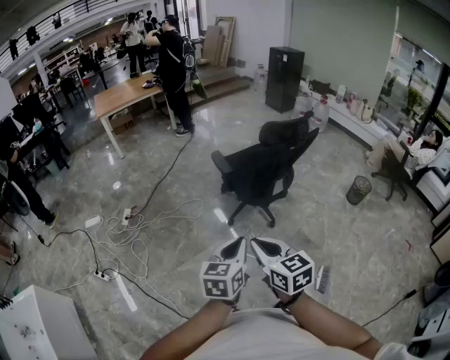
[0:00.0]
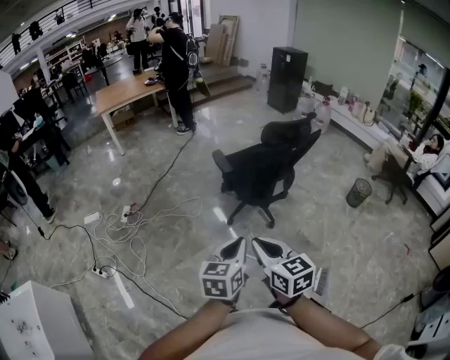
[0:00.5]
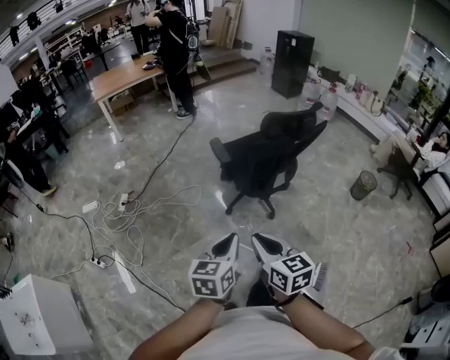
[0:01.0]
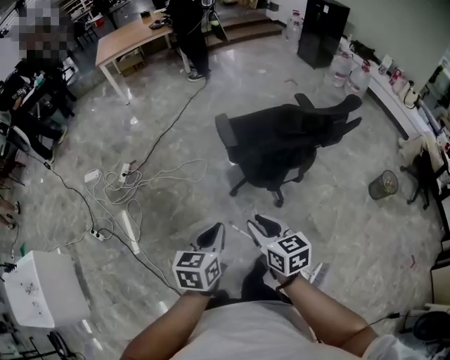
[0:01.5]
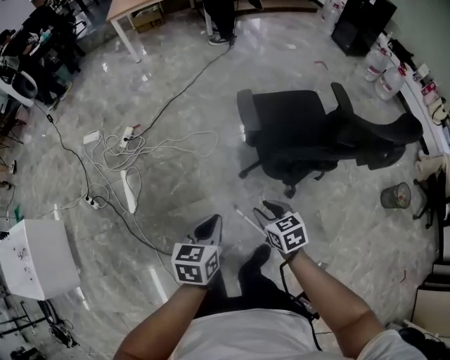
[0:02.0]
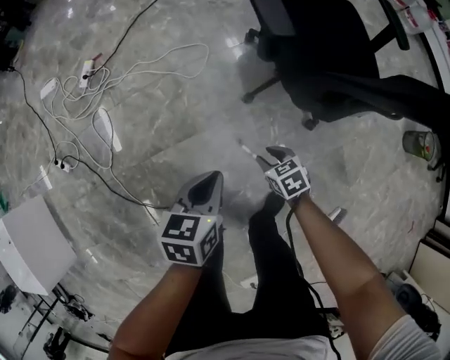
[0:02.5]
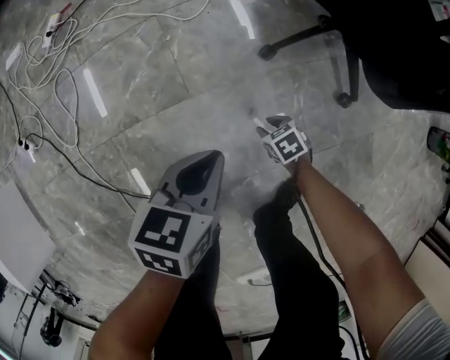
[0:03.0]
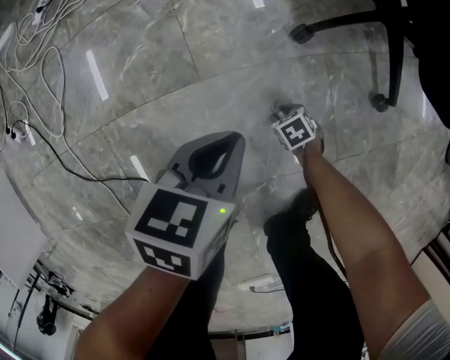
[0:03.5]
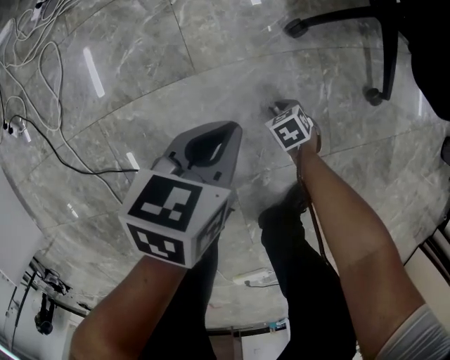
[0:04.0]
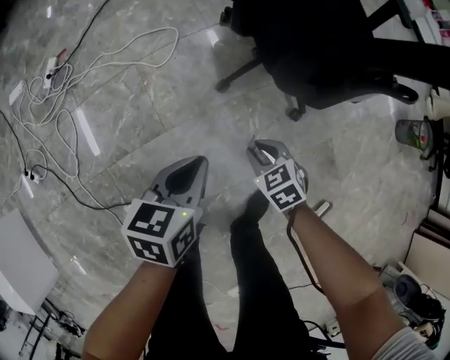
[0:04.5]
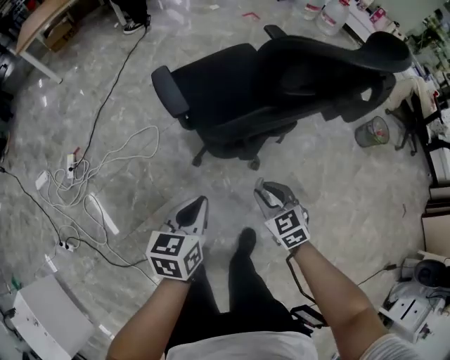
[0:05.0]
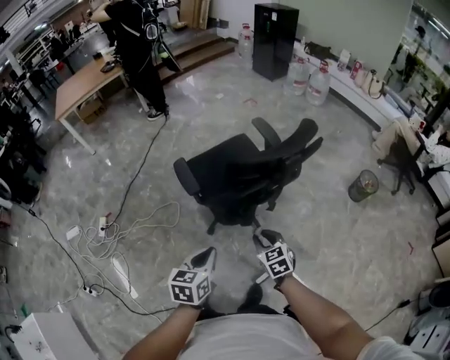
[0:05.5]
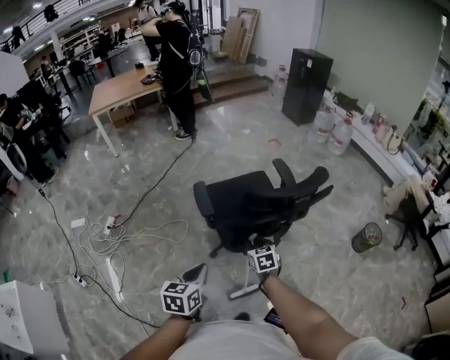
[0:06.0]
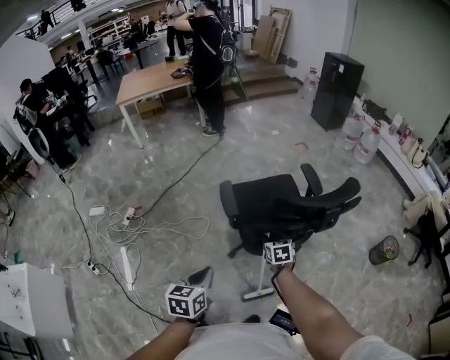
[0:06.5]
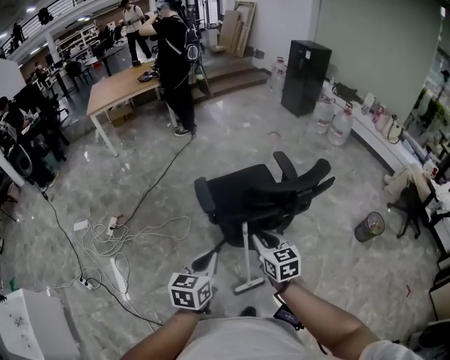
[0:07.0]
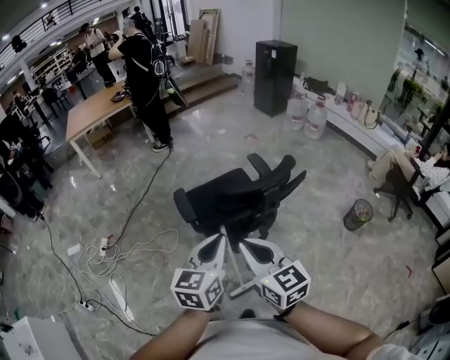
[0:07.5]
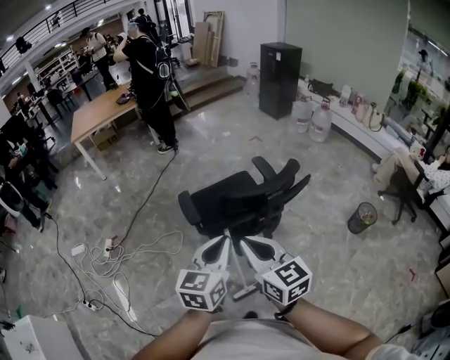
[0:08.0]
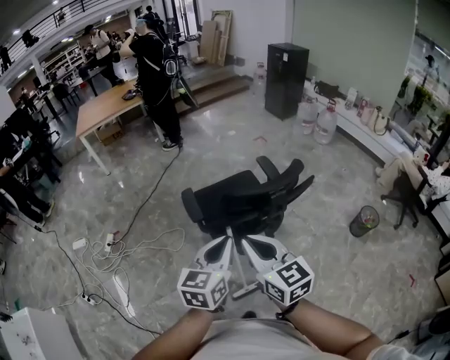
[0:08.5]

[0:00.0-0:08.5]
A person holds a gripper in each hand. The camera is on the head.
0.0 to 2.0 s: The two grippers go some 40 cm forward and downward. The right gripper turns by approximately 30 degrees, and opens. The left gripper swivels about 30 degrees.
2.0 to 4.0 s: The grippers both shift downward by approximately 80 cm. The right gripper tips its fingers downward by roughly 30 degrees.
4.0 to 6.5 s: The two grippers go some 80 cm upward. The left gripper rotates about 20 degrees, while the right gripper tips its fingers upward by about 40 degrees.
6.5 to 8.5 s: The right gripper heads upward and backward, covering about 35 cm, tips its fingers upward by approximately 30 degrees, and closes up; the left gripper shifts roughly 25 cm to the right and upward, and rotates about 20 degrees.

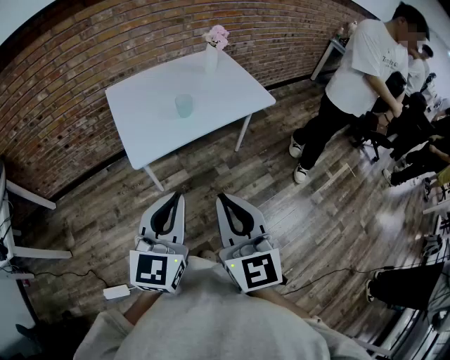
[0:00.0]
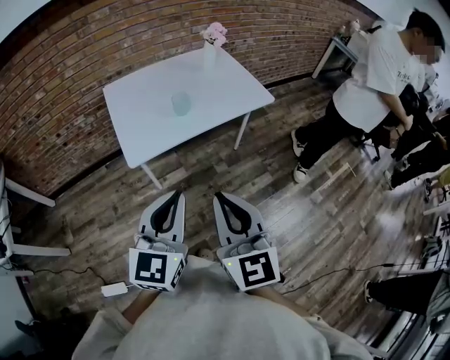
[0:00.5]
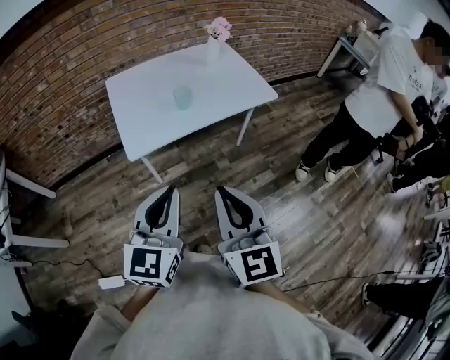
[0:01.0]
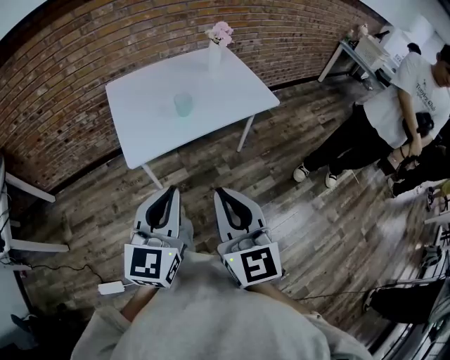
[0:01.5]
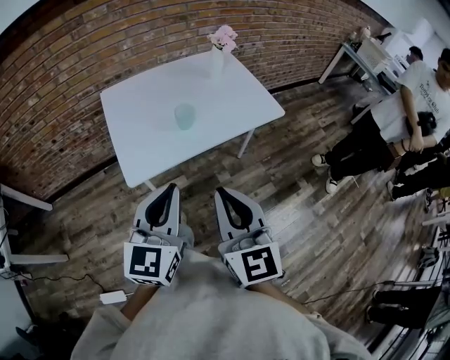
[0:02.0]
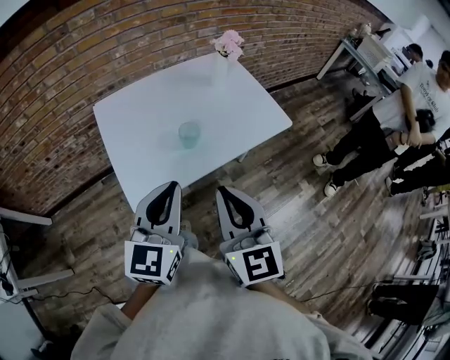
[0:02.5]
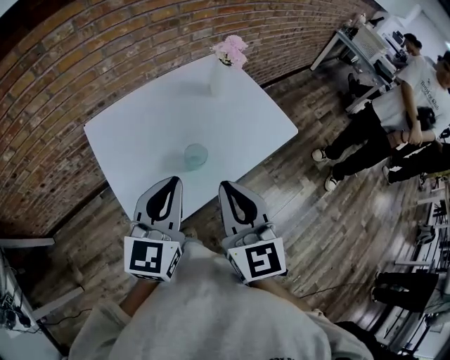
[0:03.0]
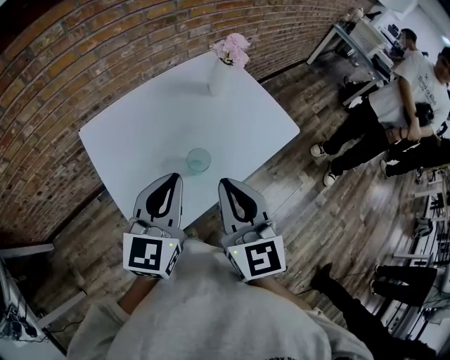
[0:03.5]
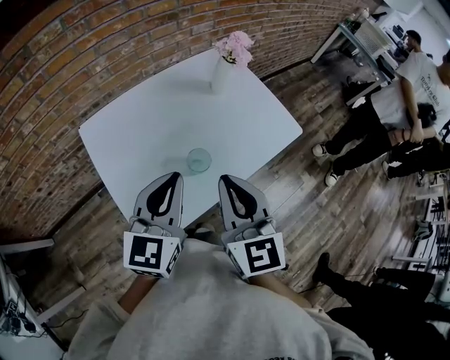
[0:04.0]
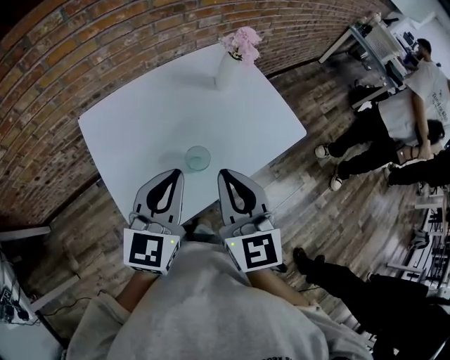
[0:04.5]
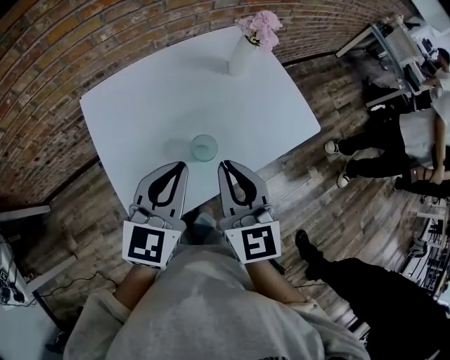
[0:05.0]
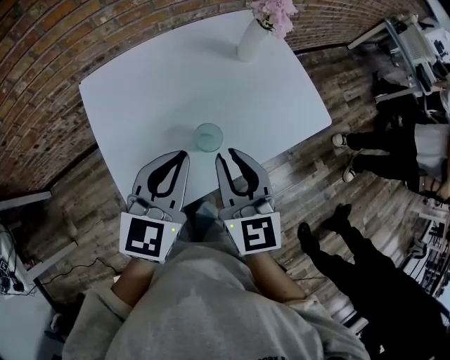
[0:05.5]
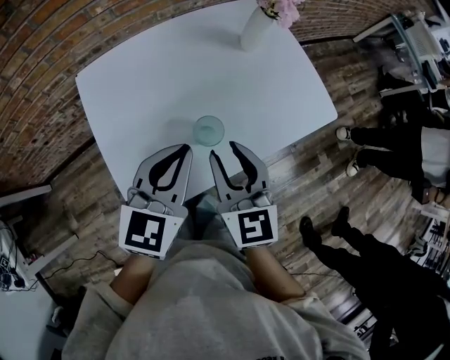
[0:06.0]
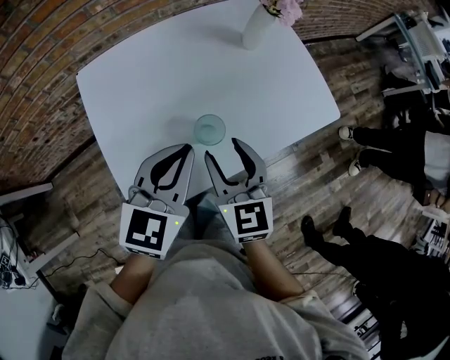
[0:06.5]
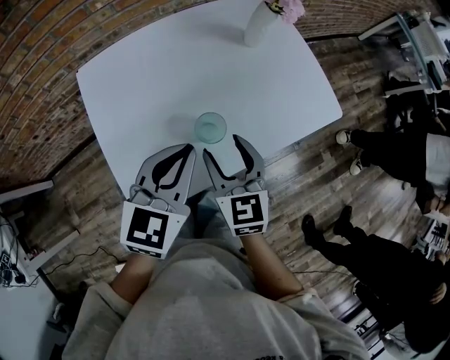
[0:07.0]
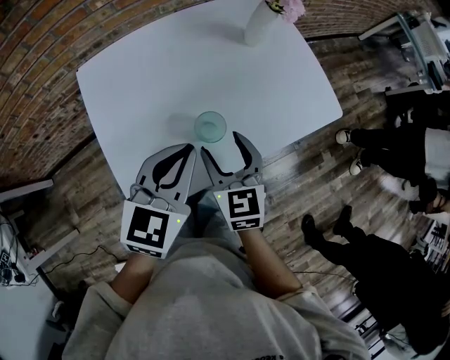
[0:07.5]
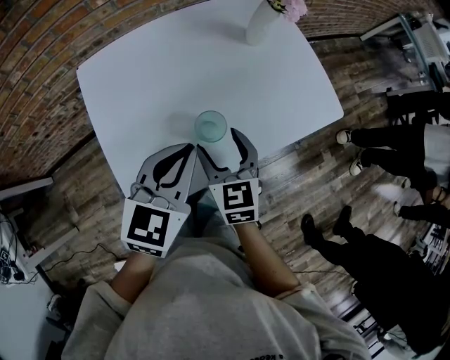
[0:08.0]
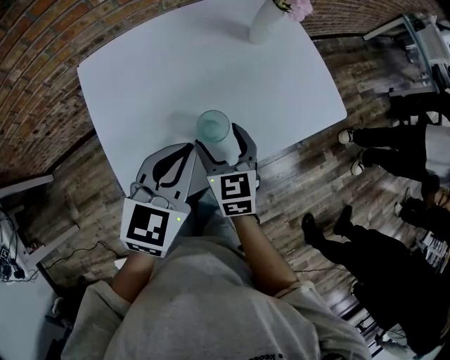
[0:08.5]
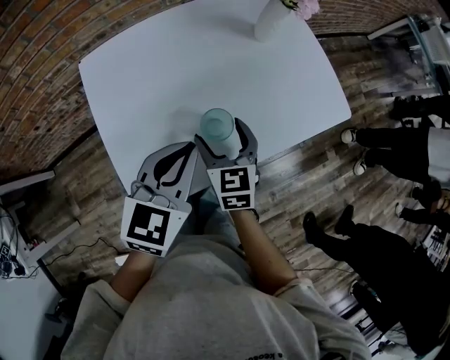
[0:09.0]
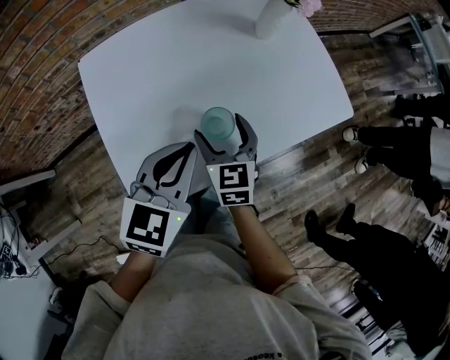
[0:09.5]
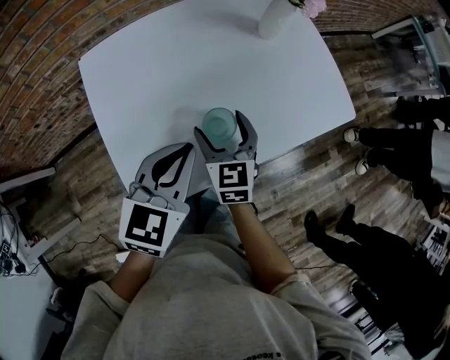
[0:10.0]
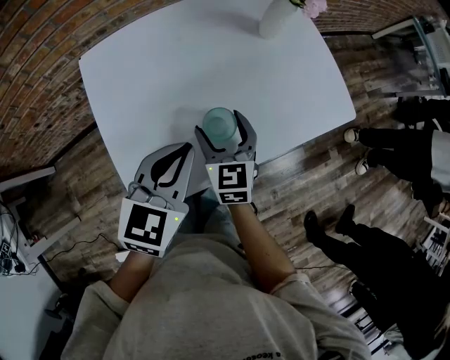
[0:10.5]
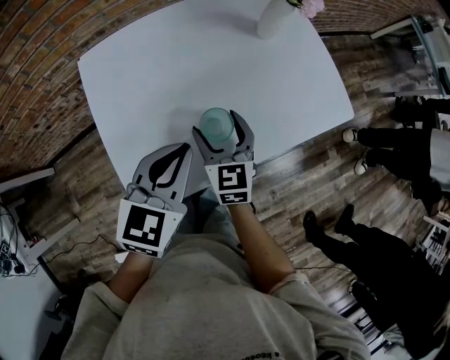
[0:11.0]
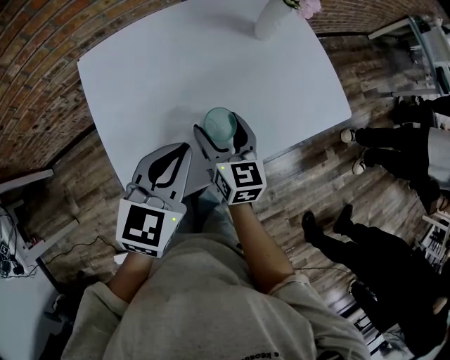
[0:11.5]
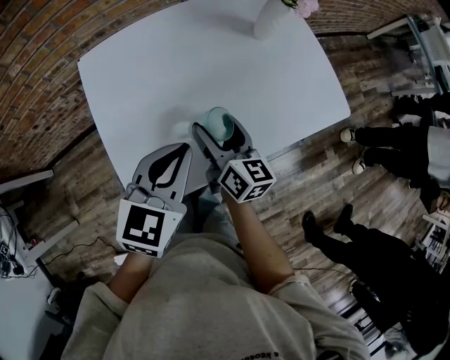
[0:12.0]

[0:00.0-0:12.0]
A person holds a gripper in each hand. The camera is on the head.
0.0 to 2.0 s: Both grippers move forward, roughly 10 cm.
2.0 to 4.0 s: Both grippers move forward, about 30 cm.
4.0 to 6.0 s: The right gripper moves downward and forward, roughly 15 cm, while the left gripper is displaced downward by about 10 cm.
6.0 to 8.0 s: The right gripper travels downward by about 10 cm, and opens up.
8.0 to 10.0 s: The right gripper changes place by roughly 5 cm.
10.0 to 12.0 s: The right gripper changes its angle by roughly 40 degrees.

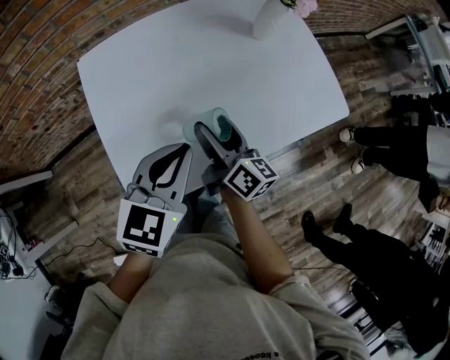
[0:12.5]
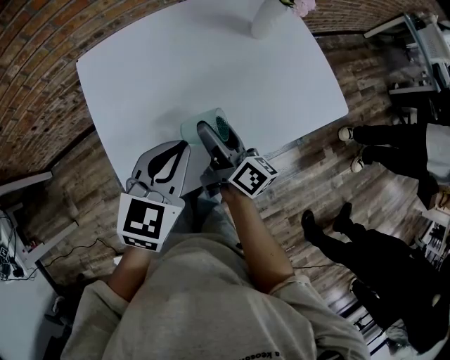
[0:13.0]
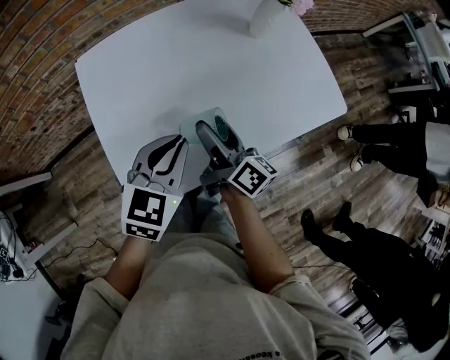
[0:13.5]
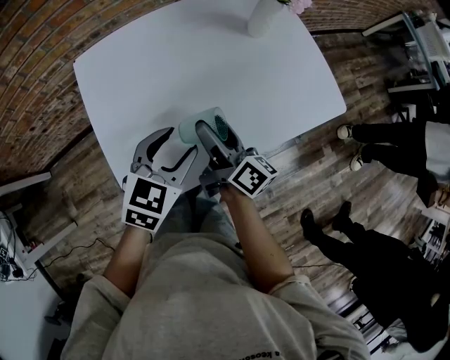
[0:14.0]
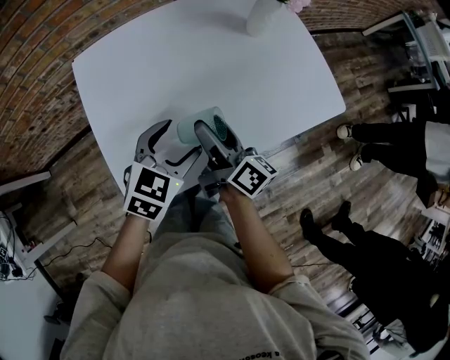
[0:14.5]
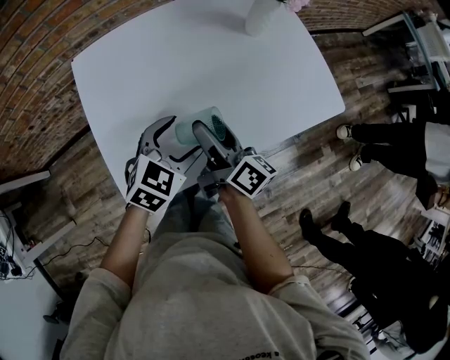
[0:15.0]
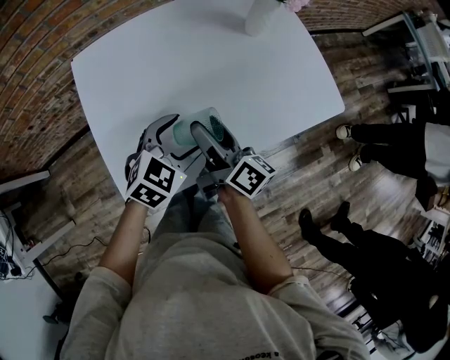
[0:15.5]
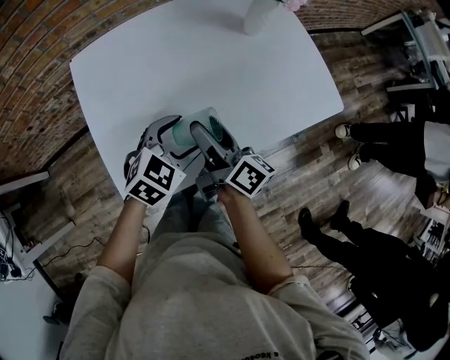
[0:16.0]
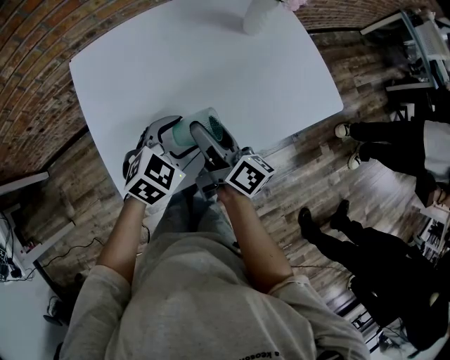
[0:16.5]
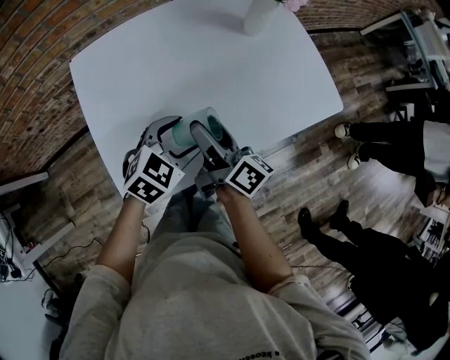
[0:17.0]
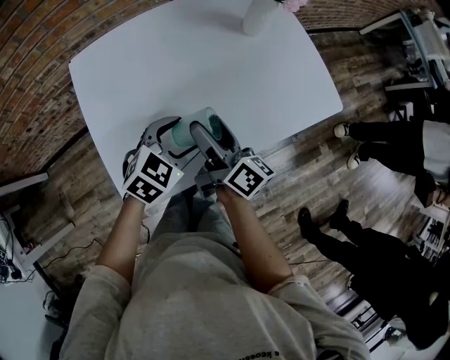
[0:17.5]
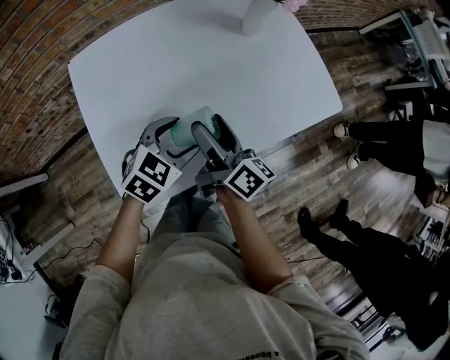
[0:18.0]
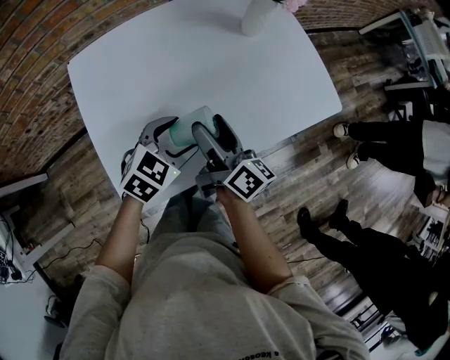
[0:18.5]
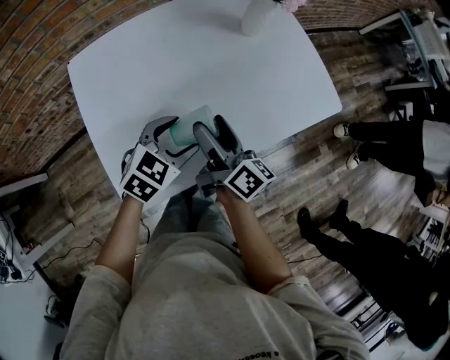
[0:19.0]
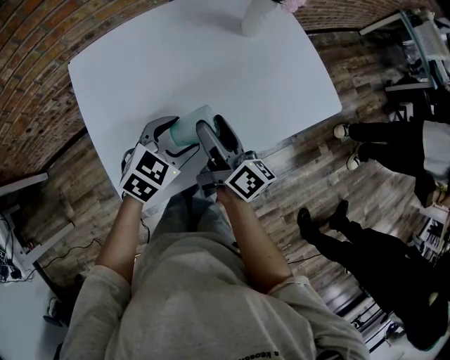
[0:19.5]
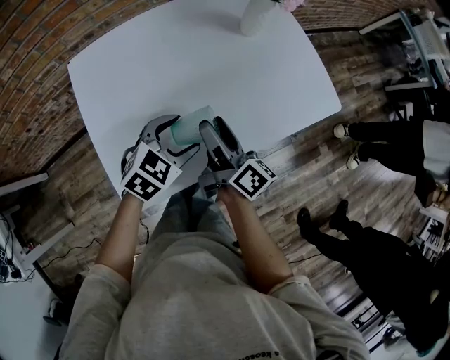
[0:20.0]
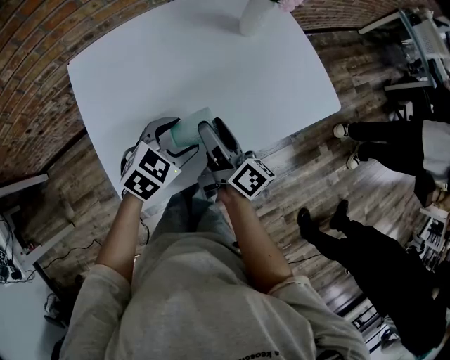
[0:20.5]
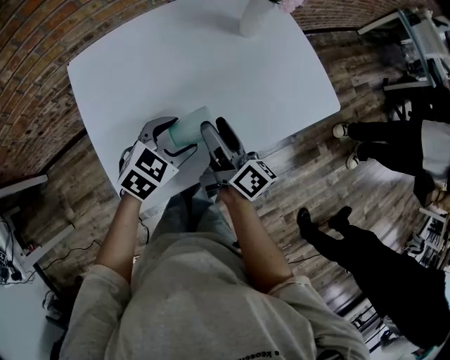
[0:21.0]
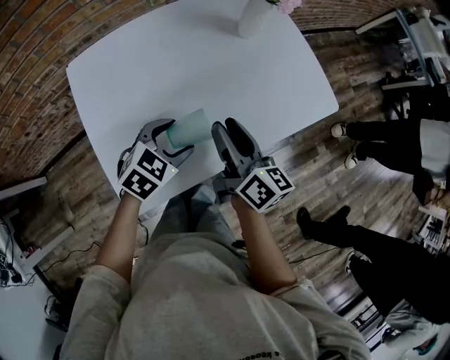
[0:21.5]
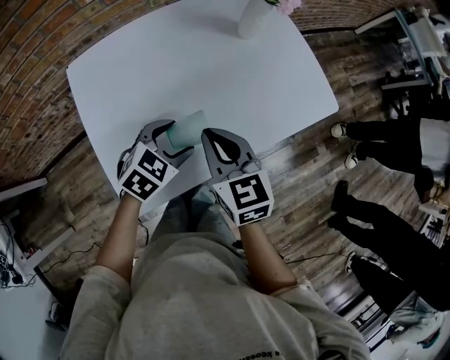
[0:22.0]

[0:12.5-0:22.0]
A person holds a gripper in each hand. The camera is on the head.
12.5 to 14.5 s: The left gripper shifts approximately 10 cm downward, and opens.
14.5 to 20.0 s: The grippers make only small movements.
20.0 to 22.0 s: The right gripper ends up approximately 5 cm from where it was, twists roughly 50 degrees counterclockwise, seen from behind, and closes.
